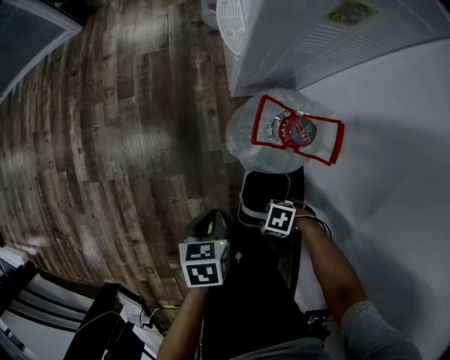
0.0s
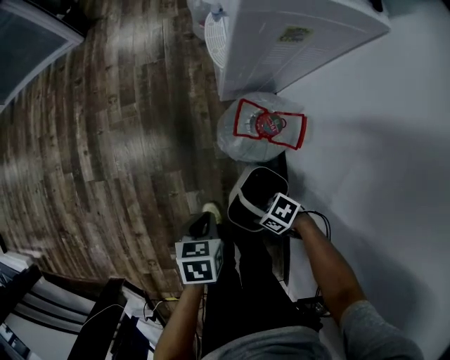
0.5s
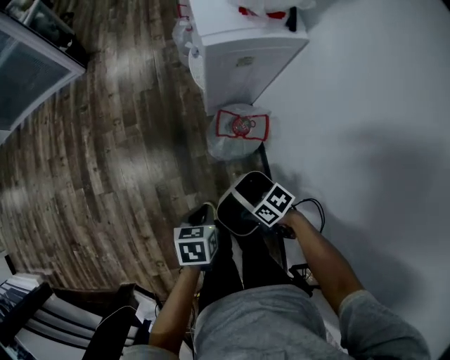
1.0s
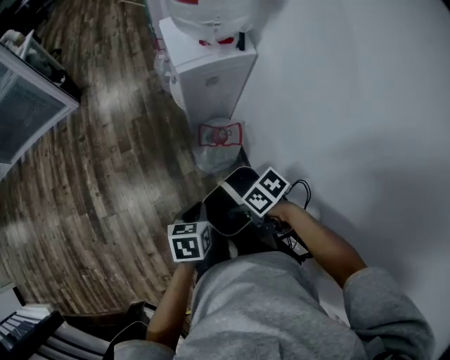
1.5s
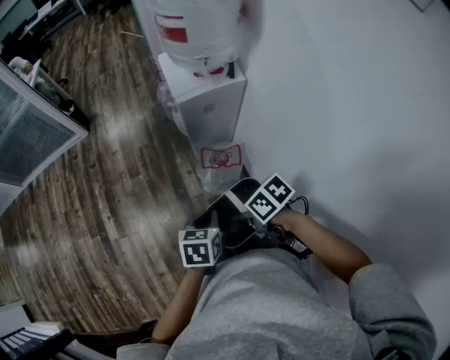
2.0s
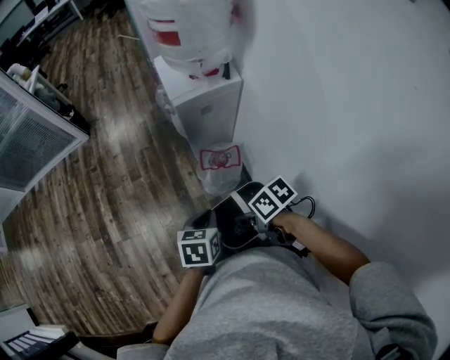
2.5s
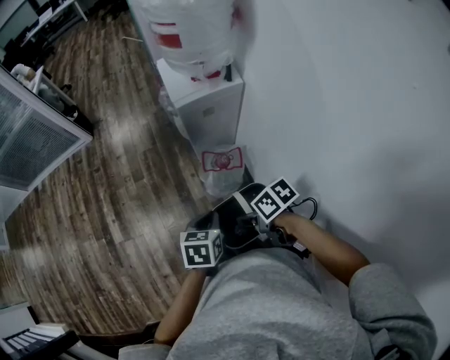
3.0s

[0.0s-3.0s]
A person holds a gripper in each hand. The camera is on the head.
0.0s to 1.5s: Both grippers travel together upward, roughly 40 cm. The right gripper changes its angle by roughly 50 degrees.
1.5s to 3.0s: Both grippers travel together upward, roughly 5 cm.

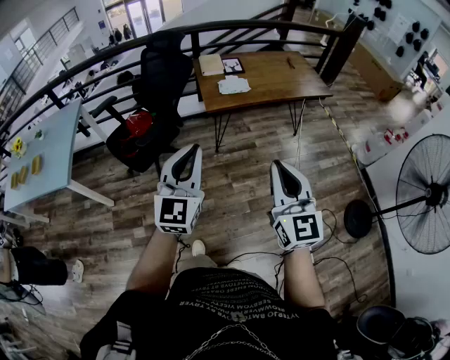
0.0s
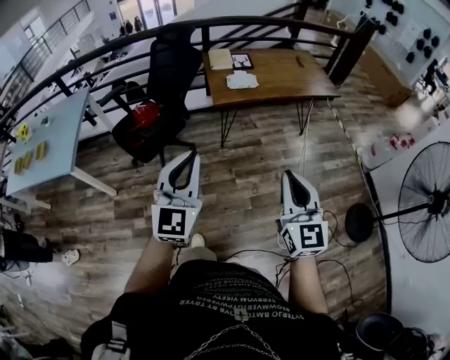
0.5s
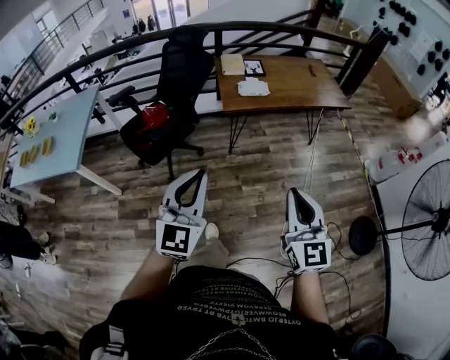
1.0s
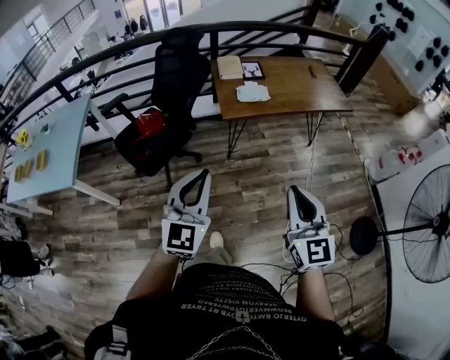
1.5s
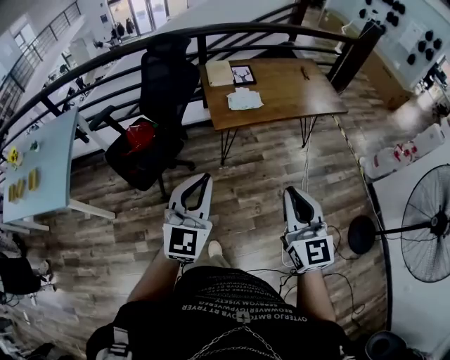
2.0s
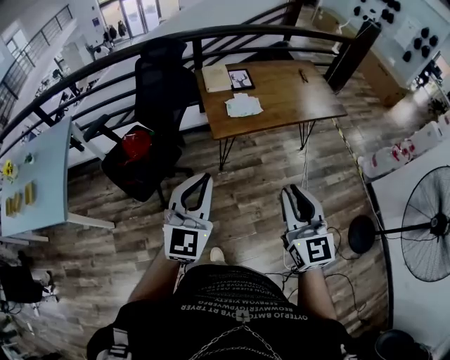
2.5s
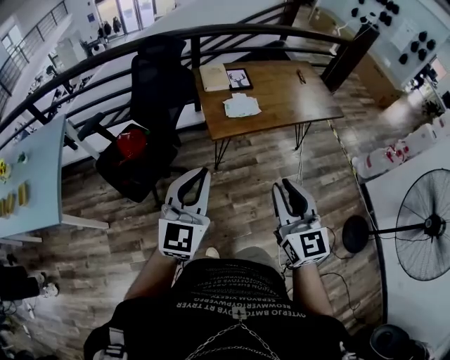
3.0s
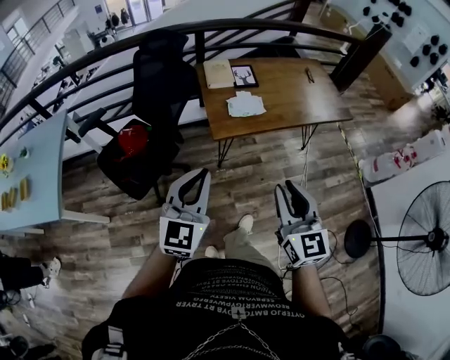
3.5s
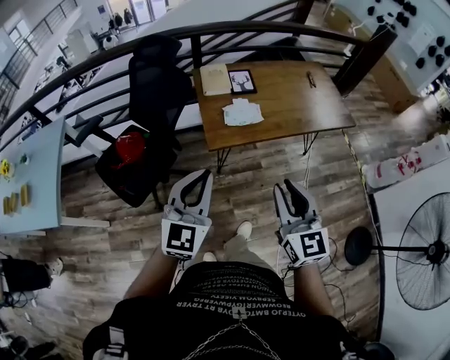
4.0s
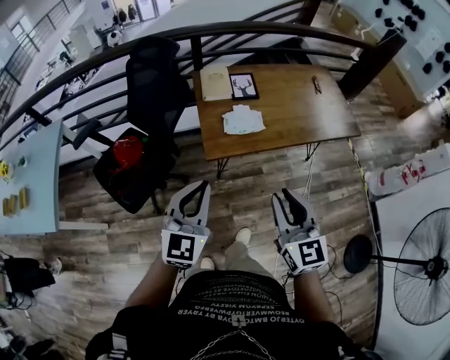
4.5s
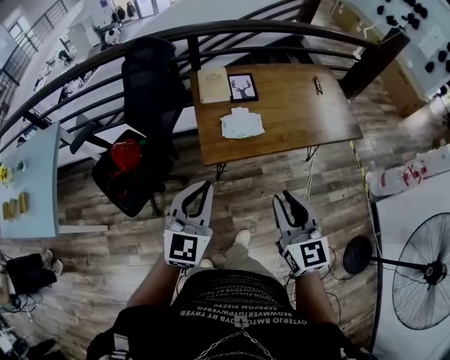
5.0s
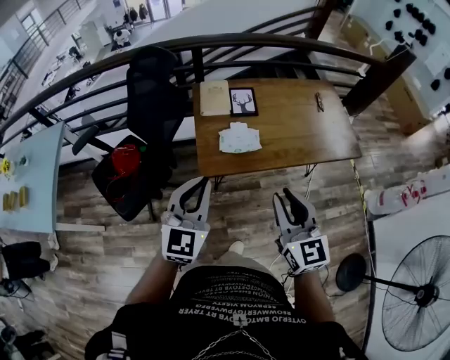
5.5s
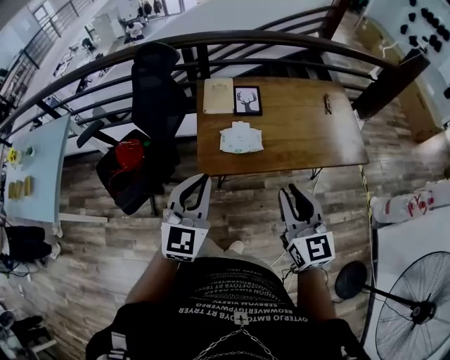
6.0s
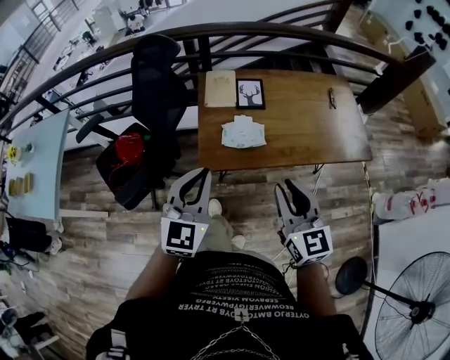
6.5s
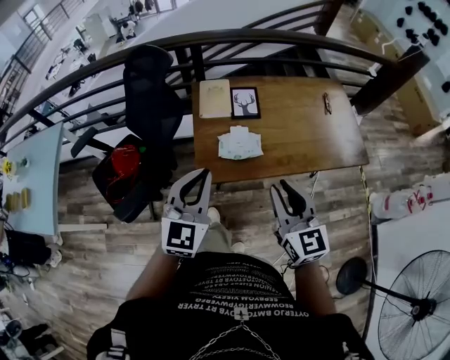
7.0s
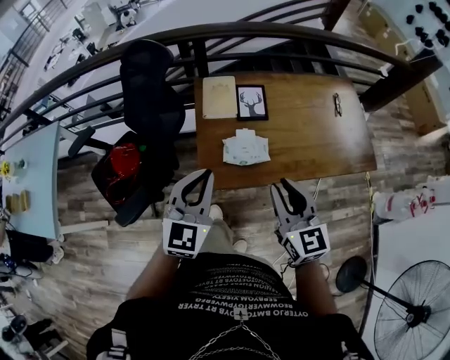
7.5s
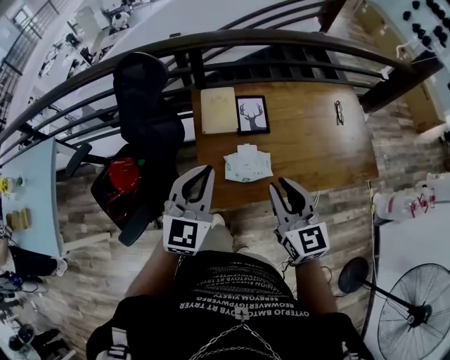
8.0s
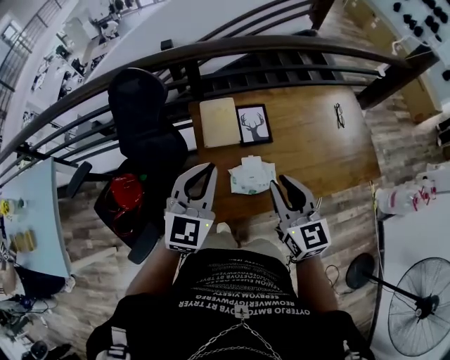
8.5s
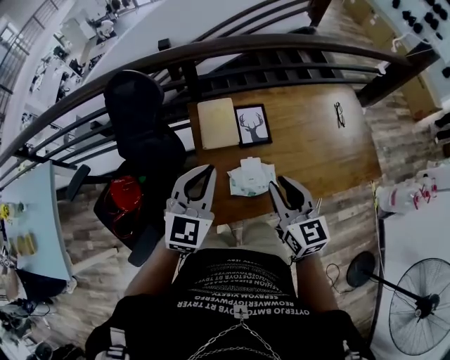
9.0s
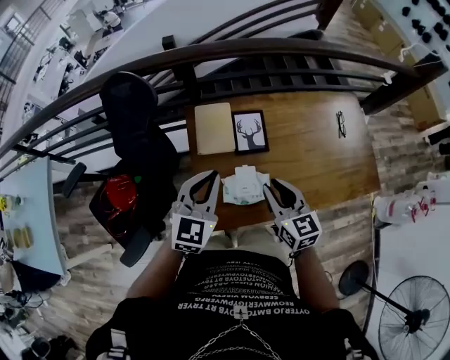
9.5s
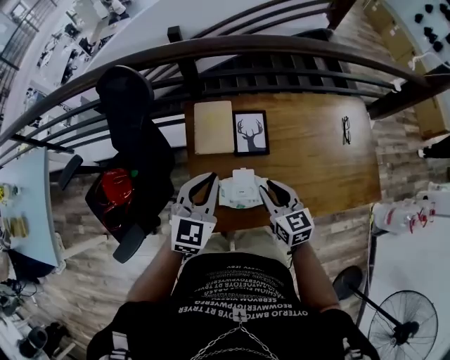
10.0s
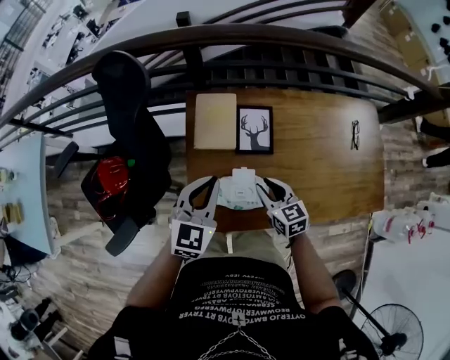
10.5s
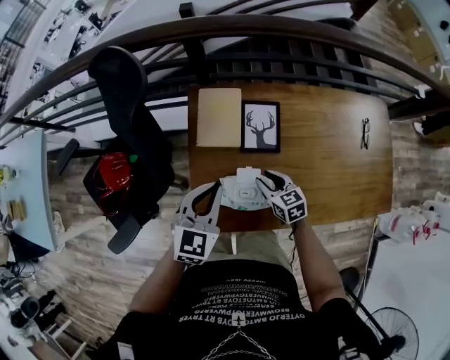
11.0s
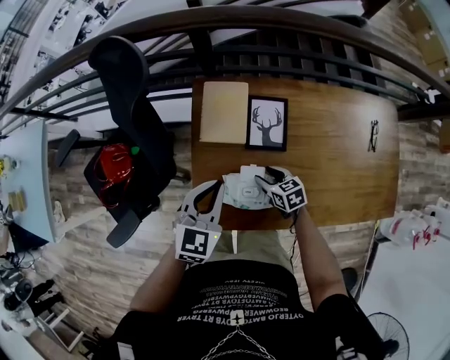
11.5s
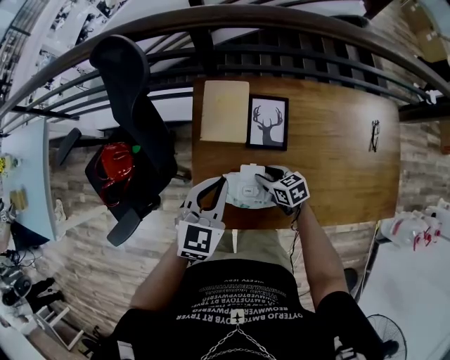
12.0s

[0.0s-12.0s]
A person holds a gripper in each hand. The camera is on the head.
0.0s to 2.0s: The two grippers go roughly 10 cm forward.
2.0s to 4.0s: Both grippers move forward, approximately 20 cm.
4.0s to 6.0s: The grippers both shift forward and to the right by roughly 20 cm.
6.0s to 8.0s: The grippers both shift forward by approximately 20 cm.
8.0s to 10.0s: The right gripper goes roughly 20 cm downward and forward; the left gripper shifts about 15 cm forward and downward.
10.0s to 12.0s: The right gripper heads downward, covering approximately 20 cm, and swivels roughly 30 degrees, while the left gripper is displaced downward by some 10 cm.

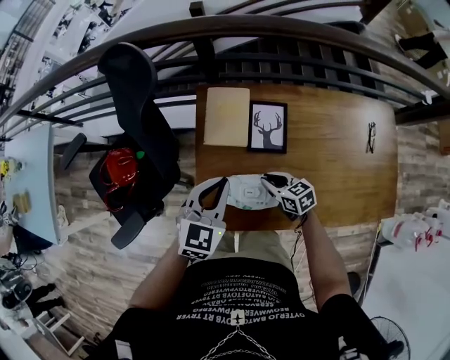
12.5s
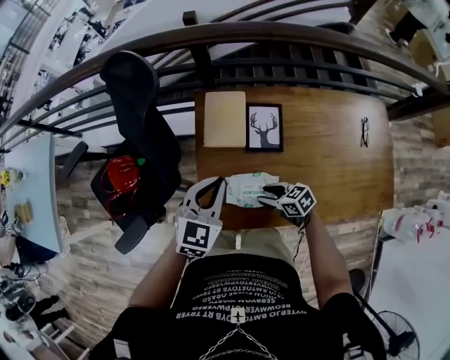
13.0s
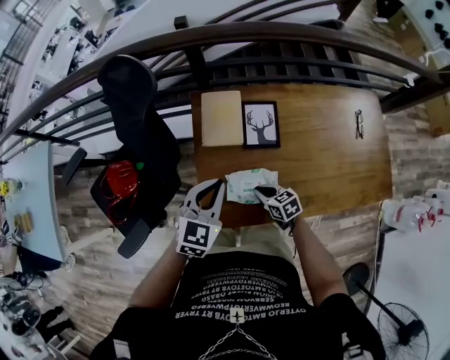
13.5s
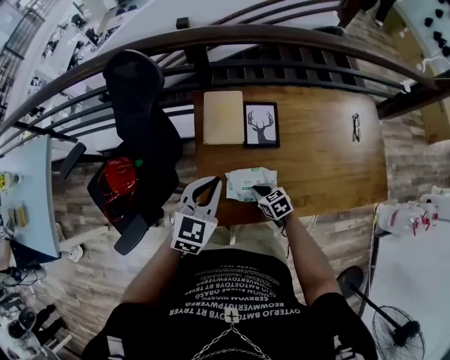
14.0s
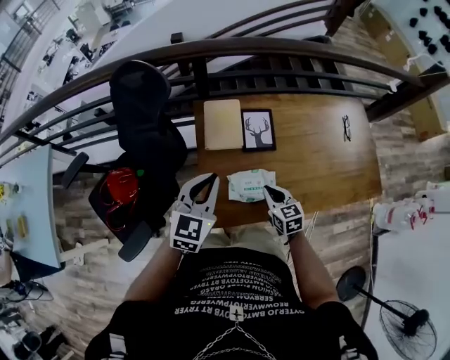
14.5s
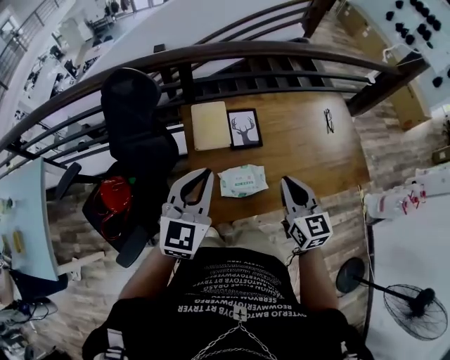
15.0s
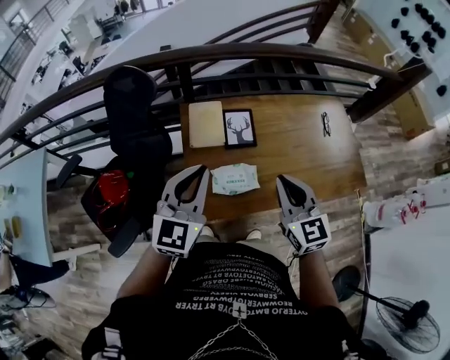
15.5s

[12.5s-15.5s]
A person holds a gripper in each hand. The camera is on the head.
12.5s to 14.0s: The right gripper heads backward and to the left, covering some 10 cm, and opens and closes again.
14.0s to 15.5s: The right gripper travels upward by roughly 35 cm, and points its fingers some 40 degrees further upward. Meanwhile the left gripper shifts about 15 cm upward, and turns by approximately 20 degrees.

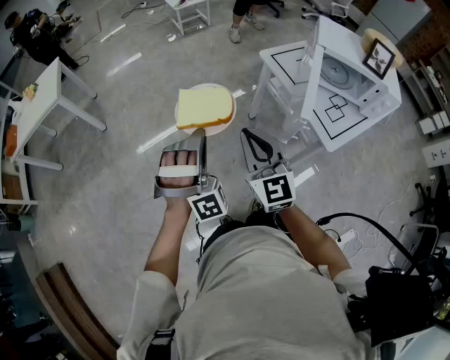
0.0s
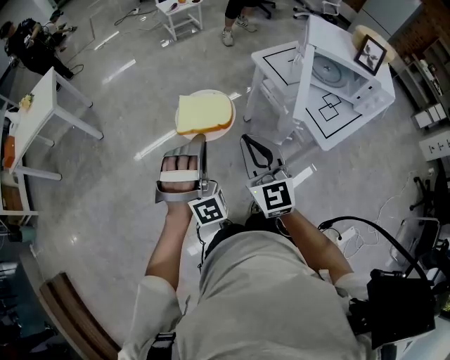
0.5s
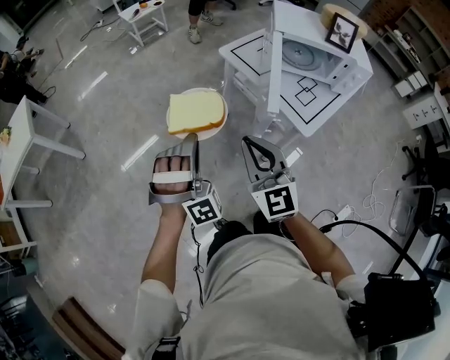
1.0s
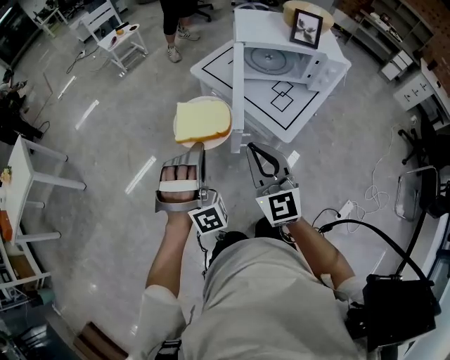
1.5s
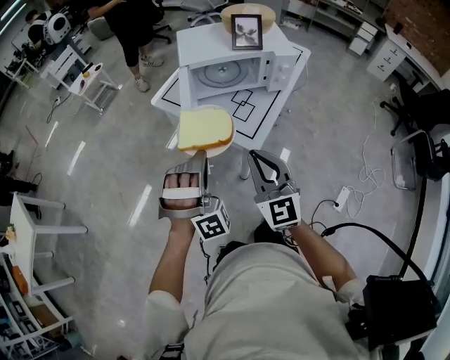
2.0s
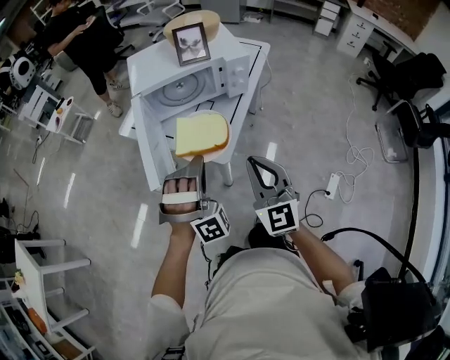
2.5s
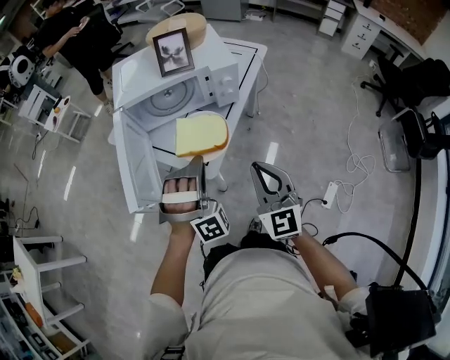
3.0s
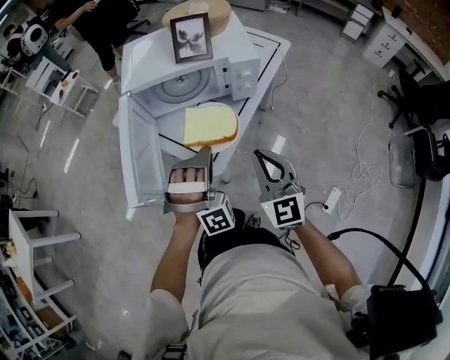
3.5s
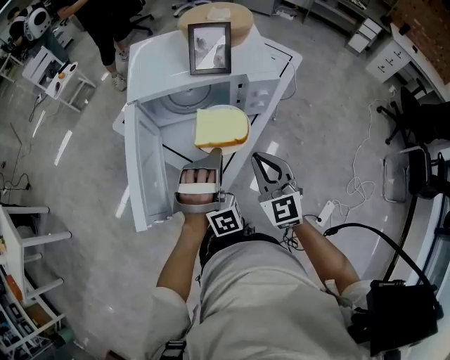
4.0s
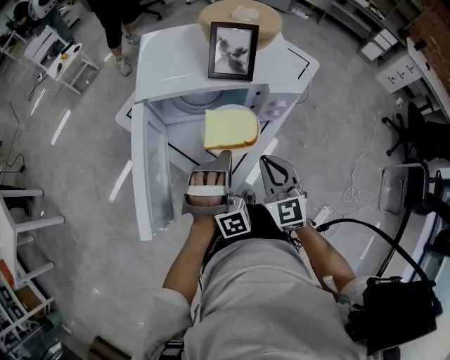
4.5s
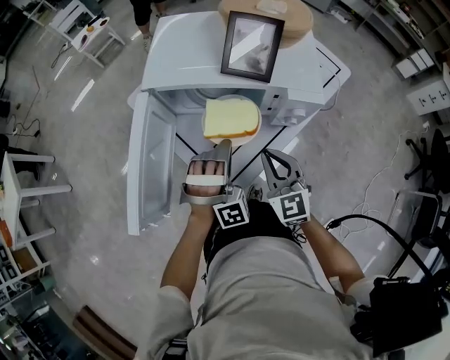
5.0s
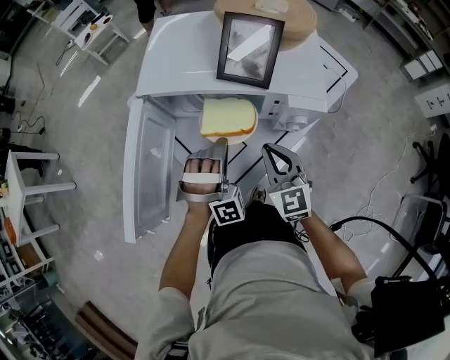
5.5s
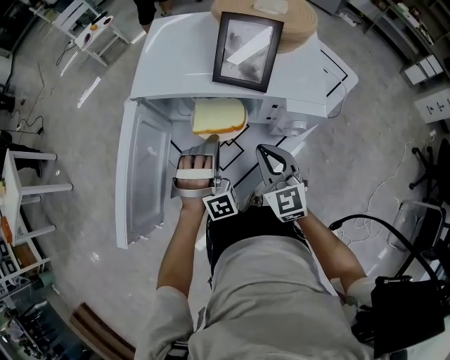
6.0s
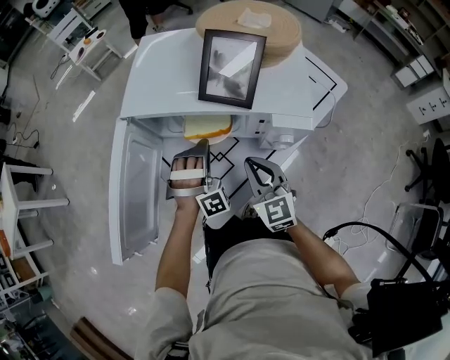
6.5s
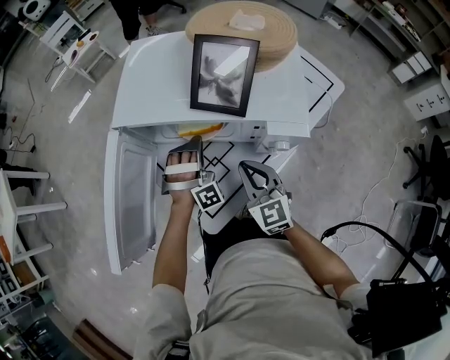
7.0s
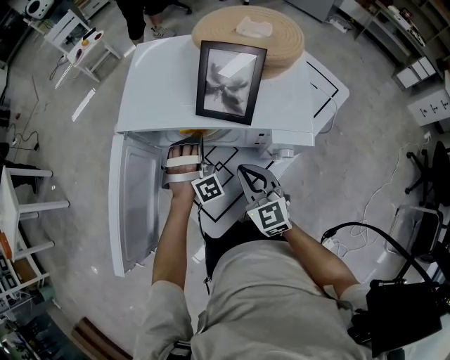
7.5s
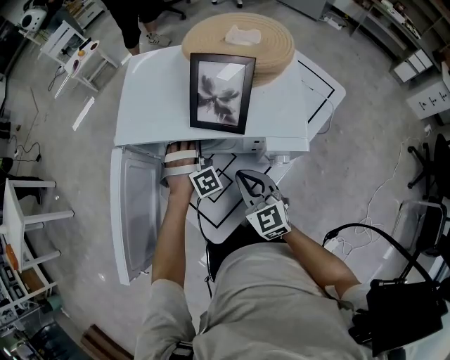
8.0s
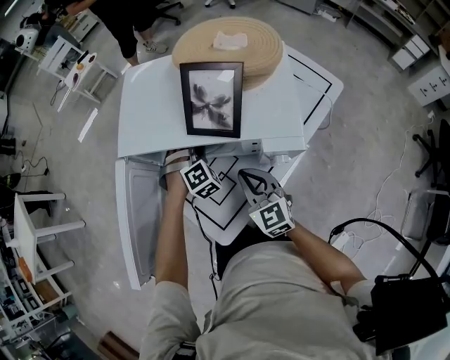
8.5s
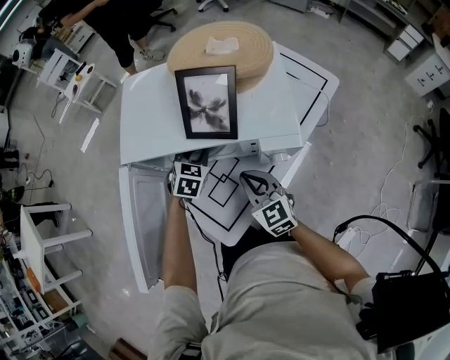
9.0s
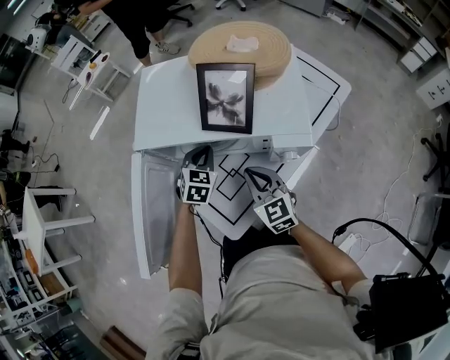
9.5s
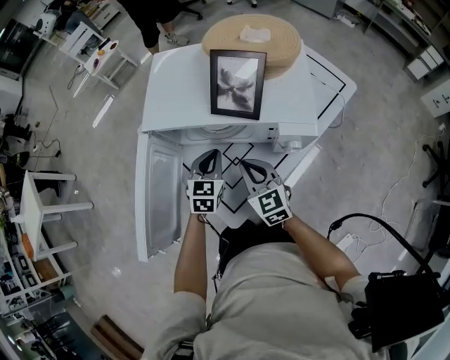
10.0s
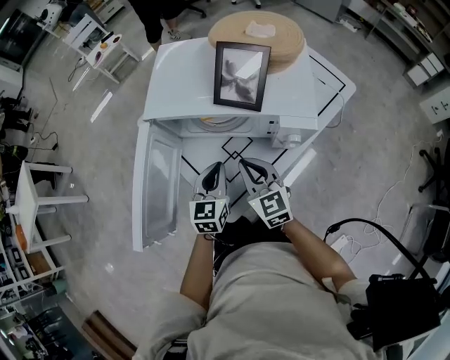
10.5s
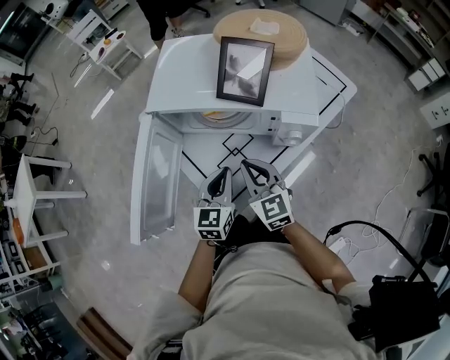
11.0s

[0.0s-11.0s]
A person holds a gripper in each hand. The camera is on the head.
0.0s to 2.0s: The right gripper changes place by roughly 30 cm, and turns by some 30 degrees.
2.0s to 3.5s: The right gripper changes place by roughly 20 cm.
3.5s to 5.5s: The right gripper shifts by roughly 20 cm, and turns by roughly 20 degrees.
5.5s to 7.5s: The right gripper shifts by about 5 cm.
9.0s to 11.0s: The right gripper changes place by about 10 cm.
